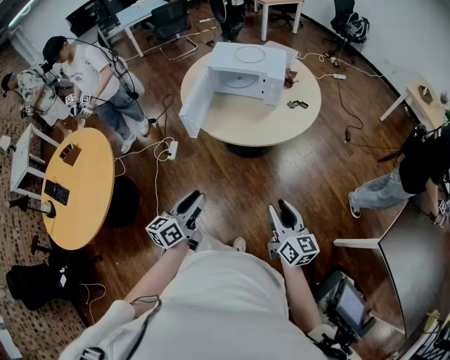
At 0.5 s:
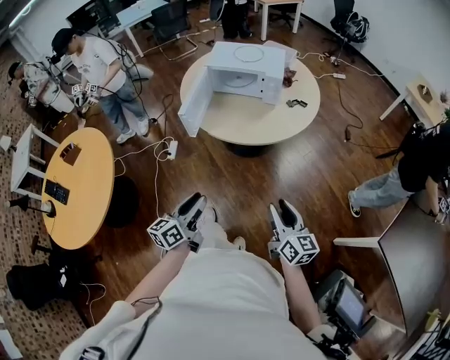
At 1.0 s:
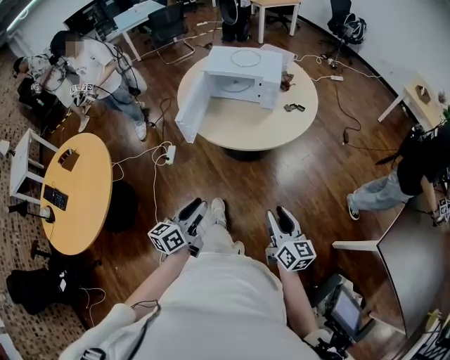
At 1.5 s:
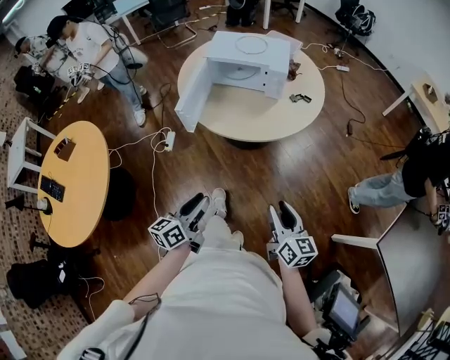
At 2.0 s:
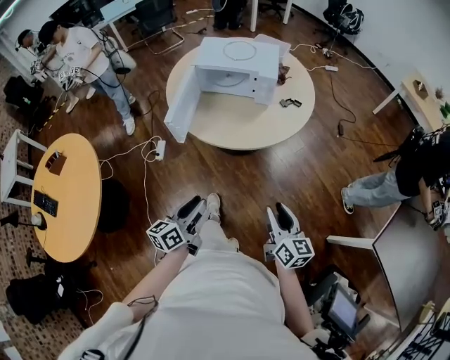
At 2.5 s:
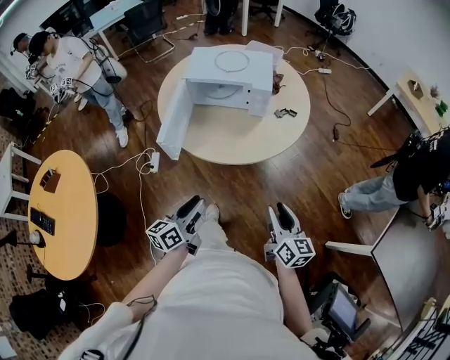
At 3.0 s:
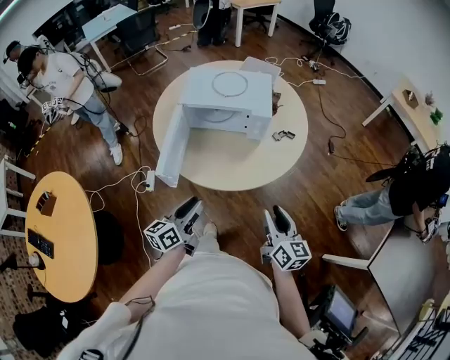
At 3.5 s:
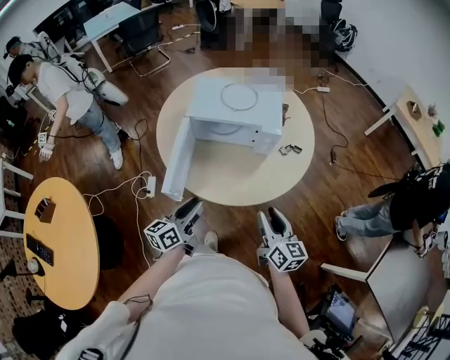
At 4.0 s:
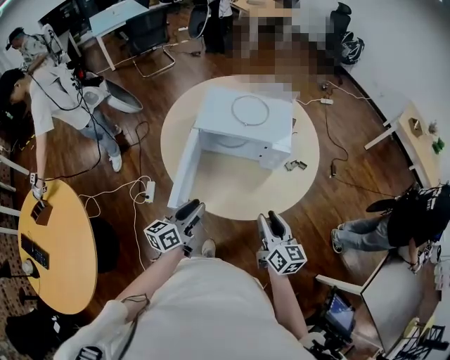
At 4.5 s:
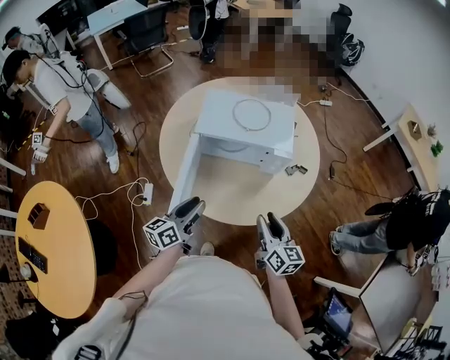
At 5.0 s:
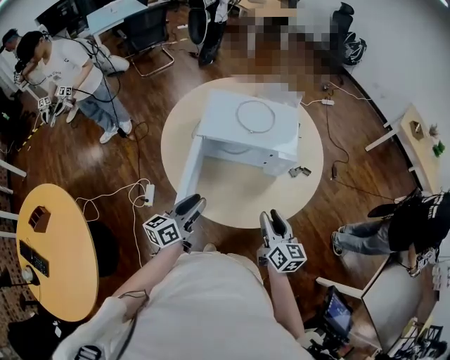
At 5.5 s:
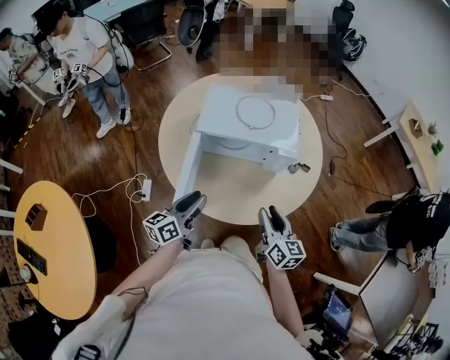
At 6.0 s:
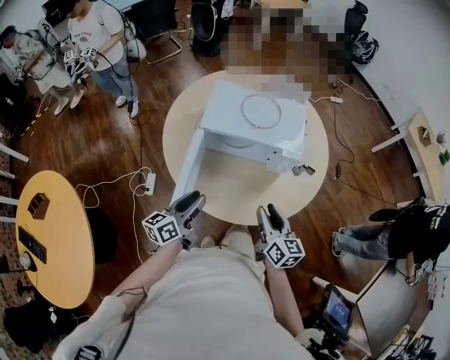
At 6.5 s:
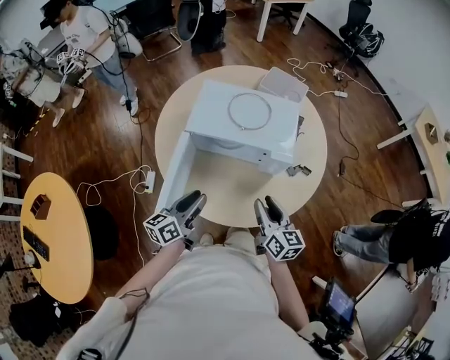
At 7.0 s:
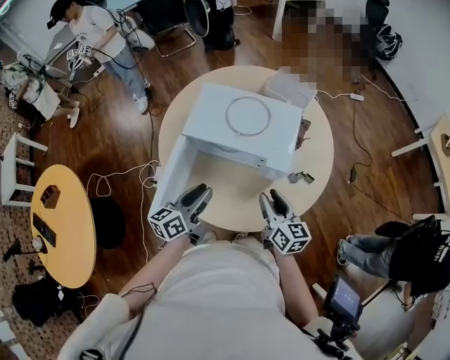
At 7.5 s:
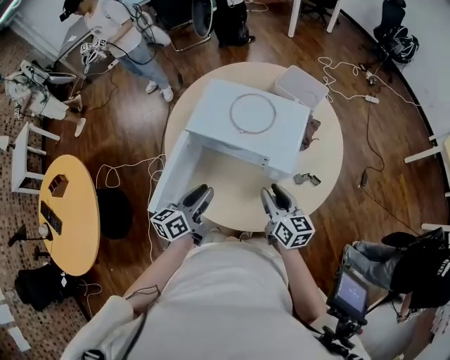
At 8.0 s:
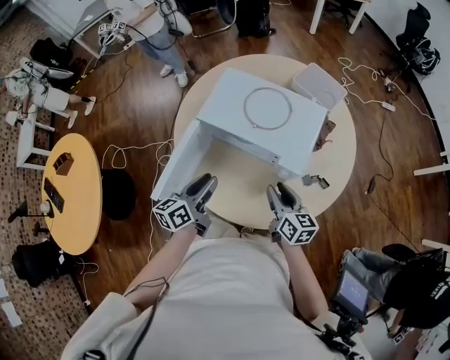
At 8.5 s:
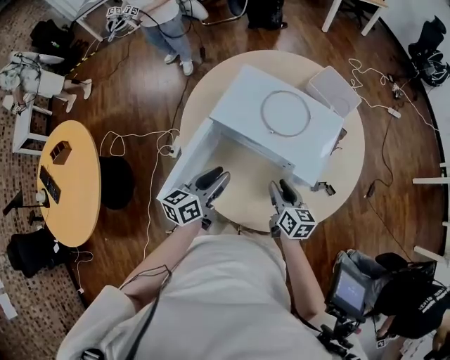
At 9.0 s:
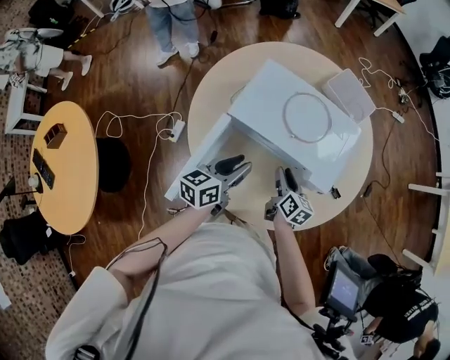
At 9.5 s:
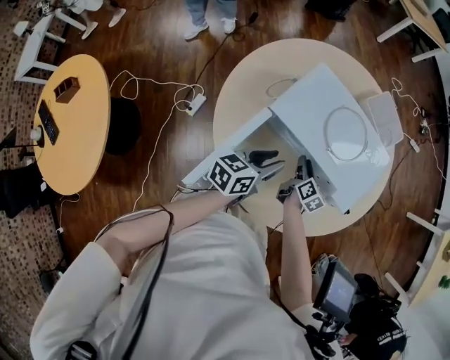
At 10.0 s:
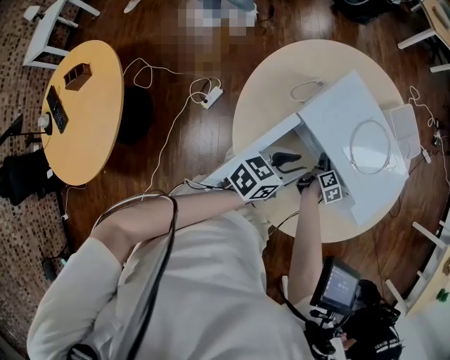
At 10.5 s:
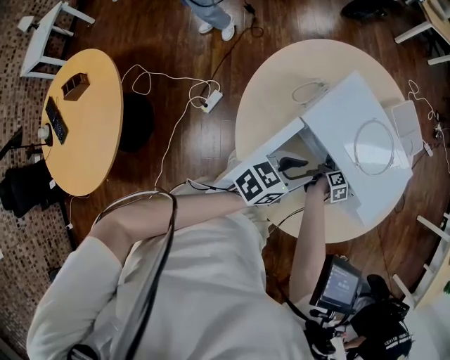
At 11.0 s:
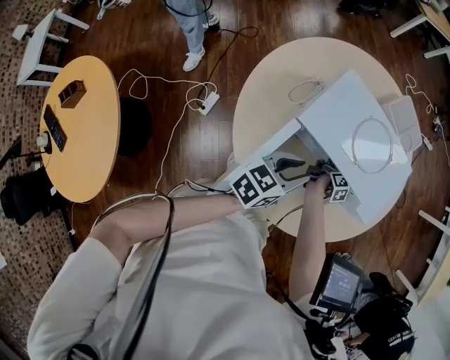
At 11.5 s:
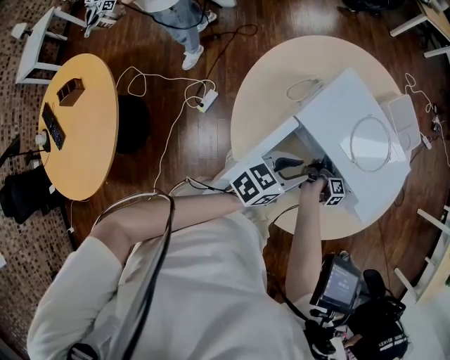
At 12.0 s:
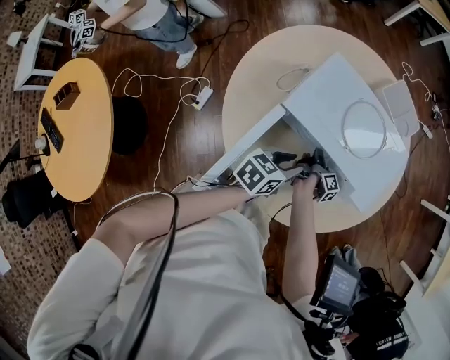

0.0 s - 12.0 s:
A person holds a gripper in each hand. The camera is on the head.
0.0 s - 2.0 s: The grippers both shift forward by some 5 cm.
2.0 s - 4.0 s: Both grippers travel together forward and to the left, roughly 35 cm.
4.0 s - 6.0 s: The grippers both shift forward by about 5 cm.
6.0 s - 8.0 s: The right gripper is displaced forward and to the right by about 20 cm, and changes its angle by approximately 20 degrees; the left gripper moves to the right and forward, approximately 15 cm.
8.0 s - 10.0 s: The left gripper shifts roughly 10 cm forward and to the left, and turns by approximately 20 degrees, while the right gripper moves downward, forward and to the left, approximately 30 cm, and rotates approximately 40 degrees.
10.0 s - 12.0 s: The right gripper twists about 50 degrees clockwise, seen from behind, and closes. The left gripper moves downward, roughly 5 cm.

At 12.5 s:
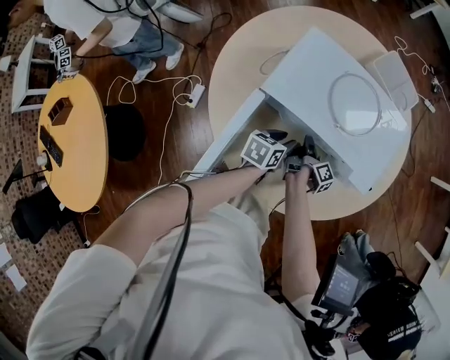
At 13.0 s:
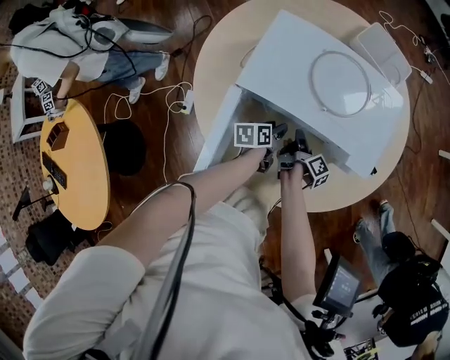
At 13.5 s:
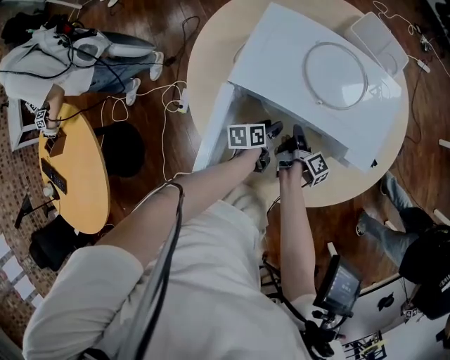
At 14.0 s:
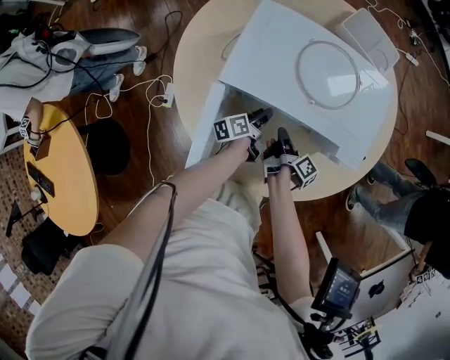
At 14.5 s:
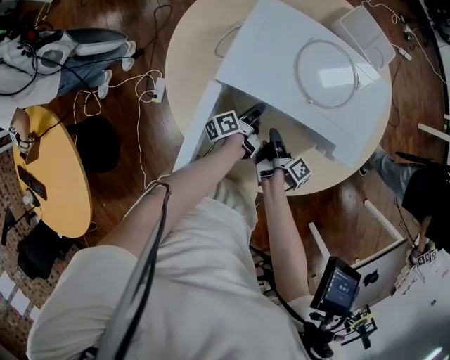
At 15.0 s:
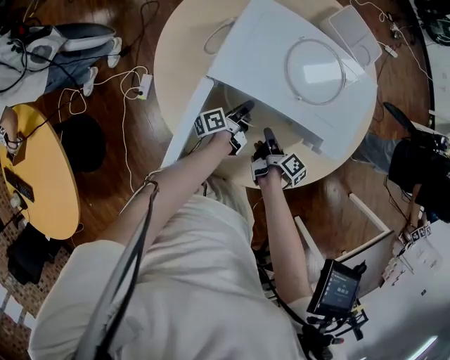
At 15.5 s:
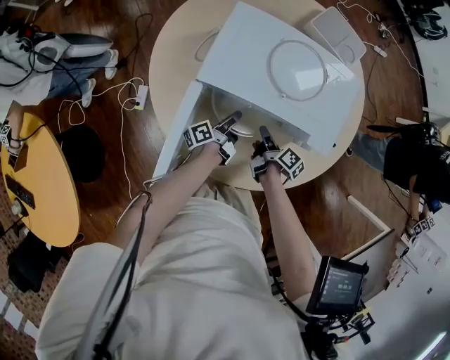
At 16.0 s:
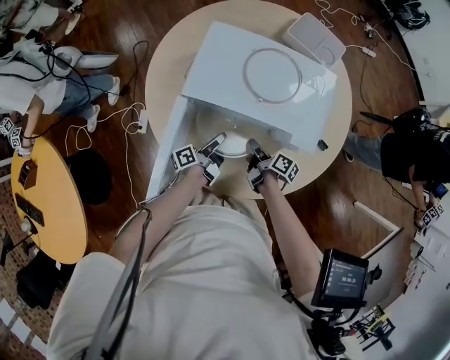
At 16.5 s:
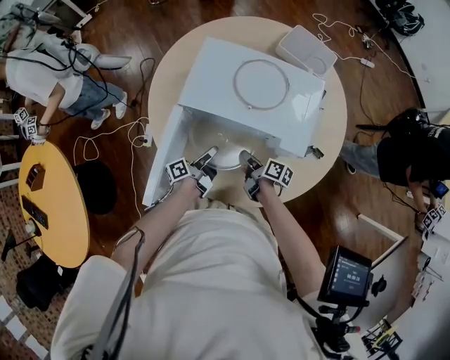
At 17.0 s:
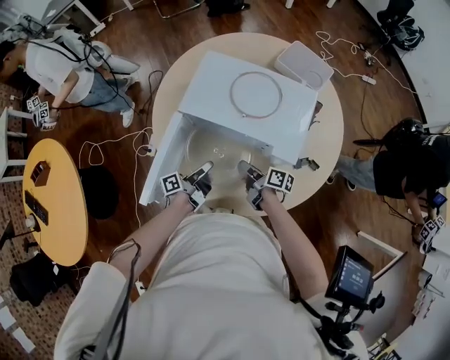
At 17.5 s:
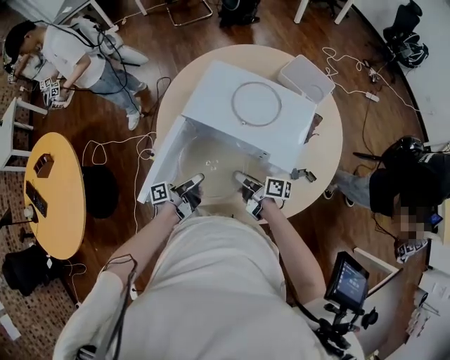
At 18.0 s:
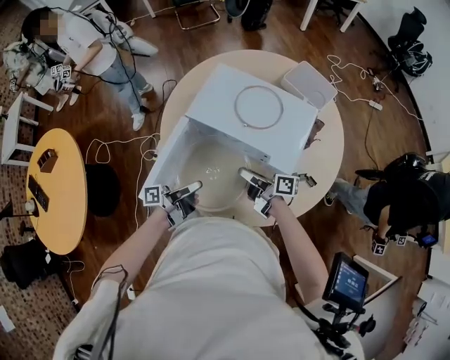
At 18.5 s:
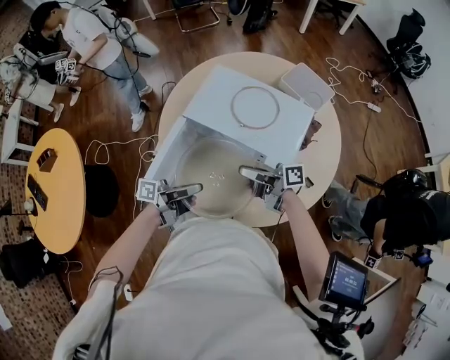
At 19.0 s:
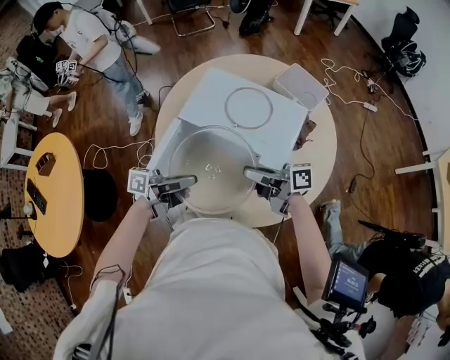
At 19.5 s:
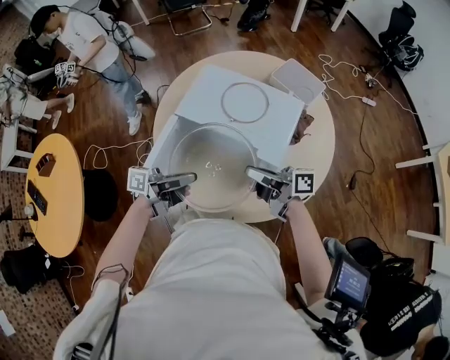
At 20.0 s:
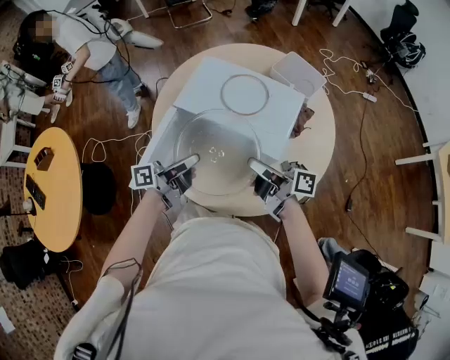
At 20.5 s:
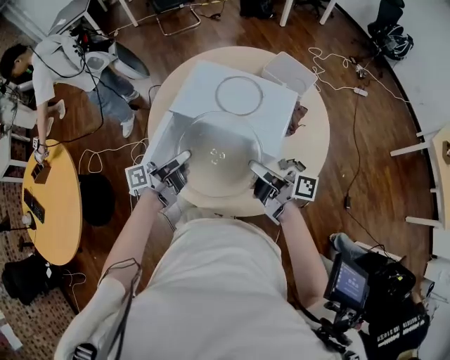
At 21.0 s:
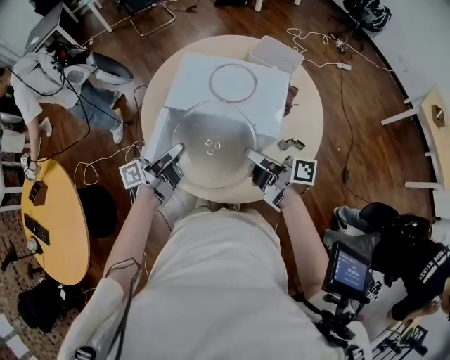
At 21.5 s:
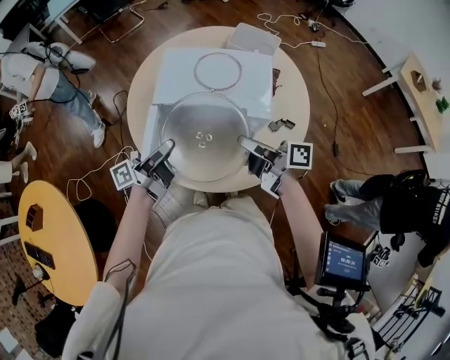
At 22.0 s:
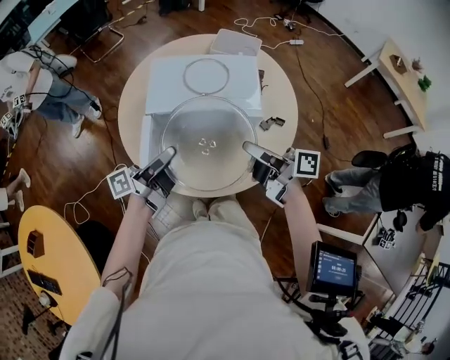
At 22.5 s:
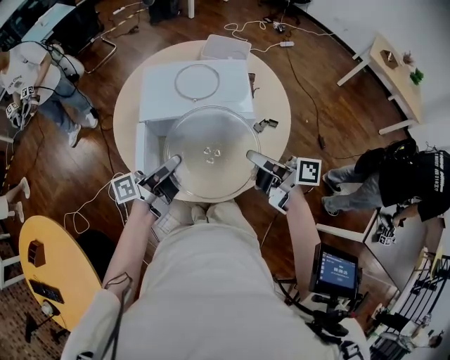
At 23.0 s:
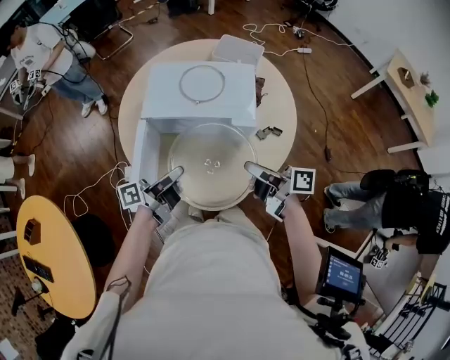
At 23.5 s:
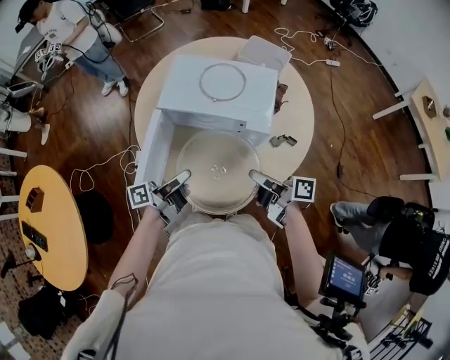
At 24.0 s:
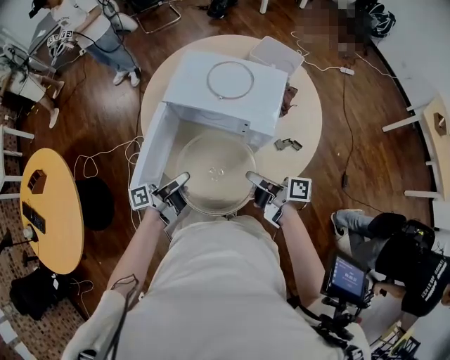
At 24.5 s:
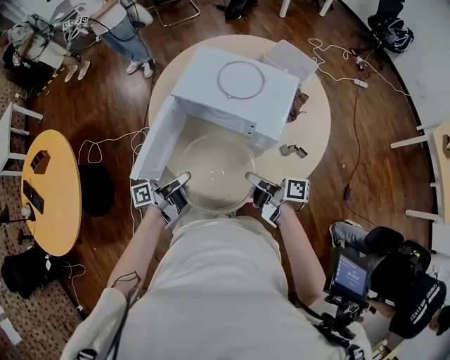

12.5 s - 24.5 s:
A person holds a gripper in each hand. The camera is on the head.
12.5 s - 14.5 s: The right gripper moves backward, roughly 5 cm. Meanwhile the left gripper is displaced downward by approximately 10 cm, and rolls counterclockwise, seen from behind, by about 50 degrees.
14.5 s - 16.5 s: The right gripper moves upward, some 5 cm, and rotates roughly 30 degrees. The left gripper moves backward and upward, some 15 cm.
16.5 s - 18.5 s: The grippers both shift upward by about 20 cm. The left gripper swivels approximately 30 degrees; the right gripper tilts its fingers approximately 40 degrees upward.
18.5 s - 20.5 s: The left gripper changes place by approximately 10 cm; the right gripper changes place by about 10 cm, and rotates roughly 20 degrees.
20.5 s - 22.5 s: The right gripper goes some 10 cm backward, and changes its angle by approximately 20 degrees. Meanwhile the left gripper is displaced backward by approximately 5 cm, and swivels some 20 degrees.
22.5 s - 24.5 s: The right gripper is displaced downward by about 15 cm, and turns by about 30 degrees, while the left gripper goes approximately 15 cm downward and backward, and turns by roughly 30 degrees.

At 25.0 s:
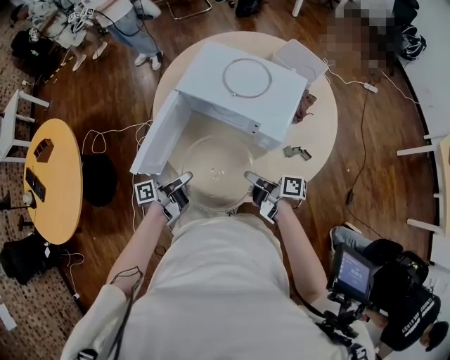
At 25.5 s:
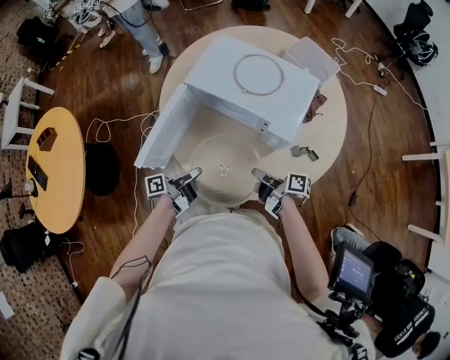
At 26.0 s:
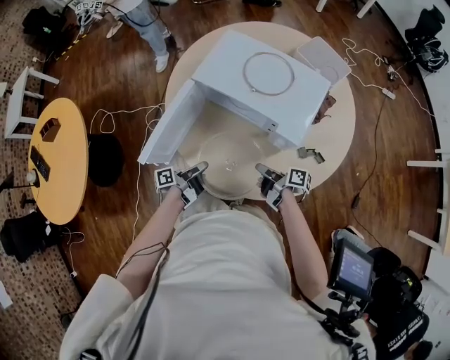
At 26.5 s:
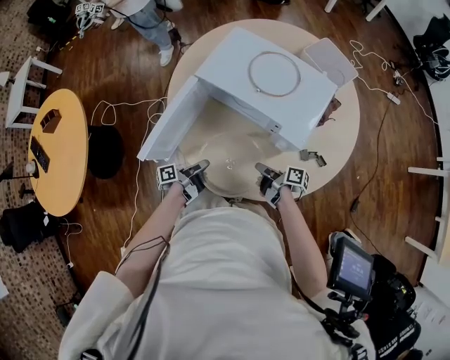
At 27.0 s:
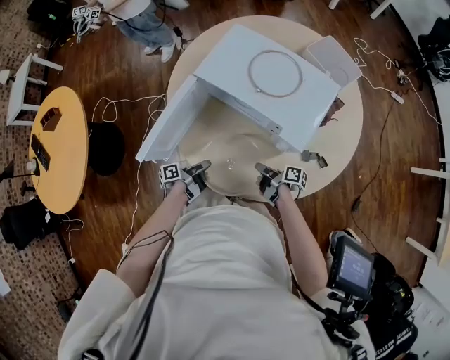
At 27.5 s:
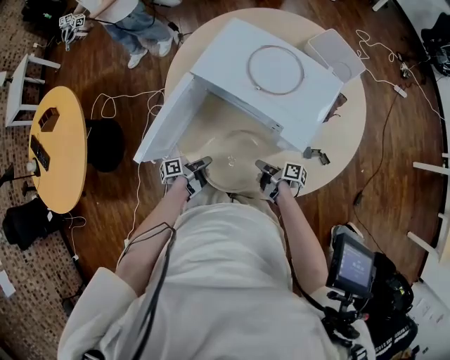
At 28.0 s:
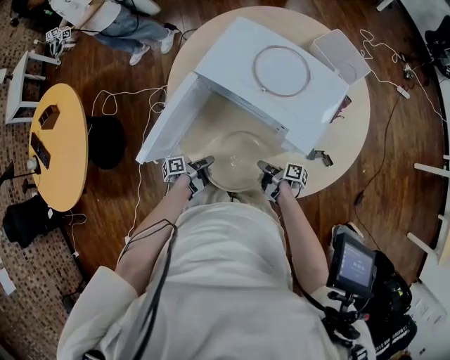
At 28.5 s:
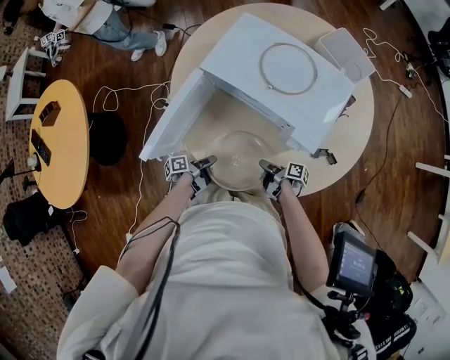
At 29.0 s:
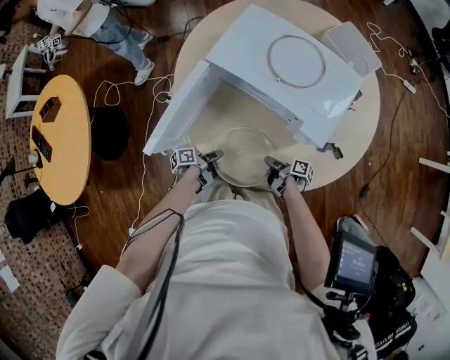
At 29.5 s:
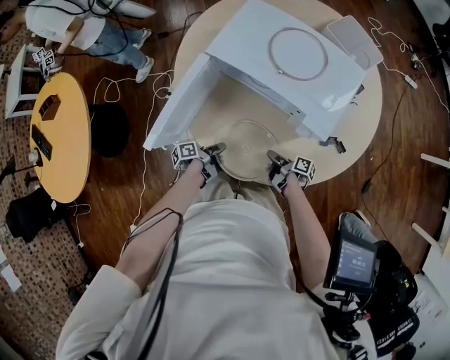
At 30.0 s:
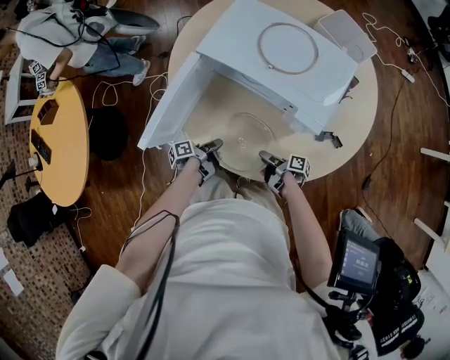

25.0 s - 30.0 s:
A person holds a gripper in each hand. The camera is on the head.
25.0 s - 27.5 s: The grippers both shift downward by about 20 cm. The right gripper turns by approximately 20 degrees; the left gripper rotates some 20 degrees.
27.5 s - 30.0 s: The right gripper ends up about 5 cm from where it was, and opens its fingers.
